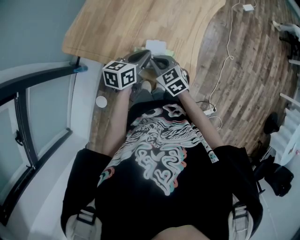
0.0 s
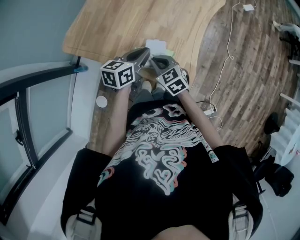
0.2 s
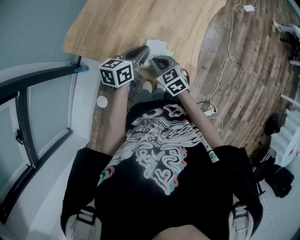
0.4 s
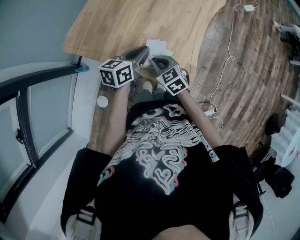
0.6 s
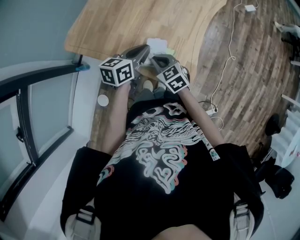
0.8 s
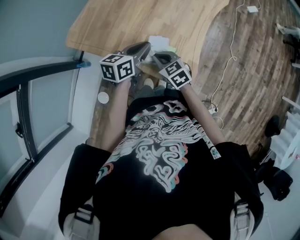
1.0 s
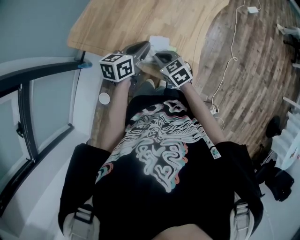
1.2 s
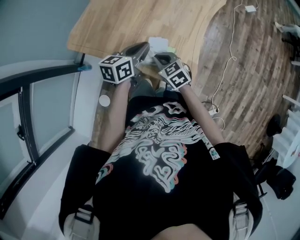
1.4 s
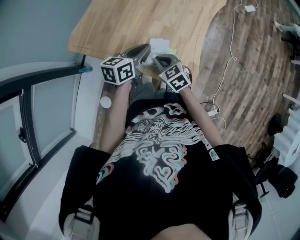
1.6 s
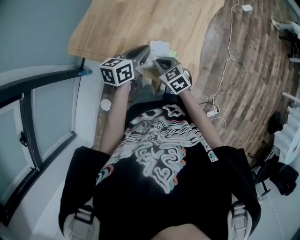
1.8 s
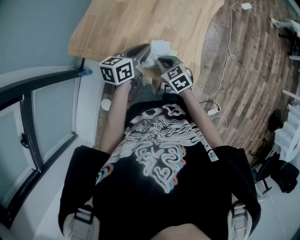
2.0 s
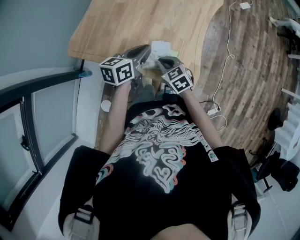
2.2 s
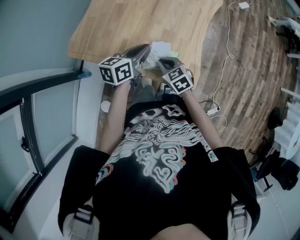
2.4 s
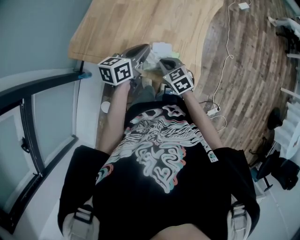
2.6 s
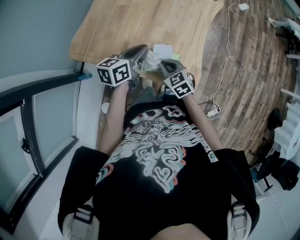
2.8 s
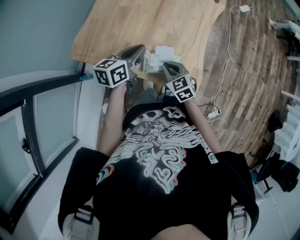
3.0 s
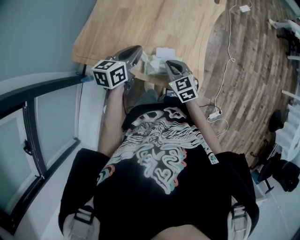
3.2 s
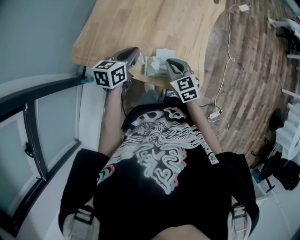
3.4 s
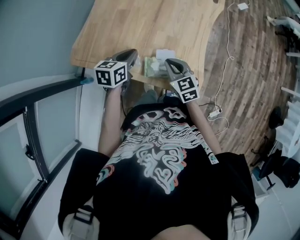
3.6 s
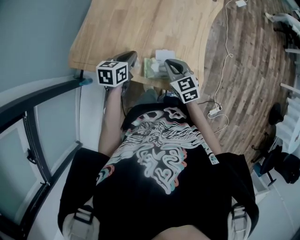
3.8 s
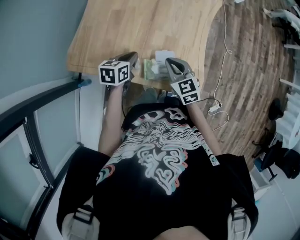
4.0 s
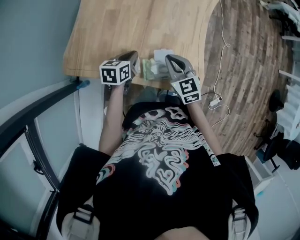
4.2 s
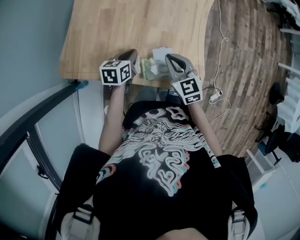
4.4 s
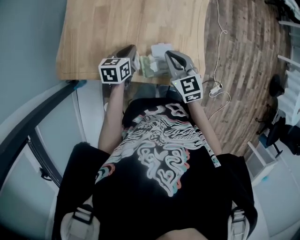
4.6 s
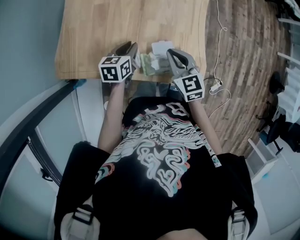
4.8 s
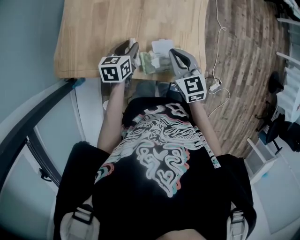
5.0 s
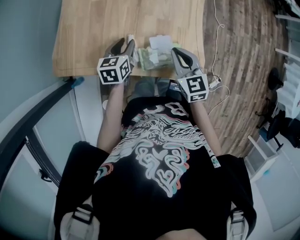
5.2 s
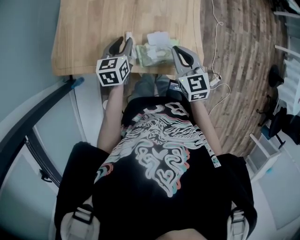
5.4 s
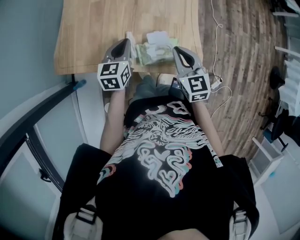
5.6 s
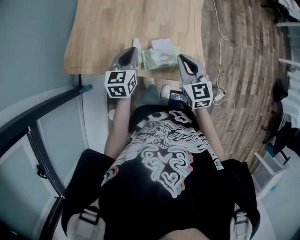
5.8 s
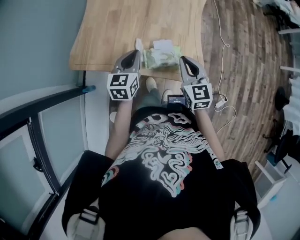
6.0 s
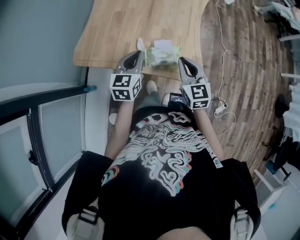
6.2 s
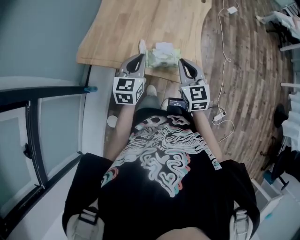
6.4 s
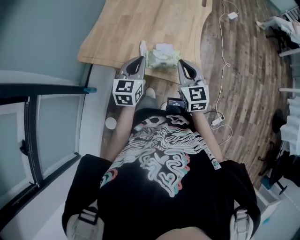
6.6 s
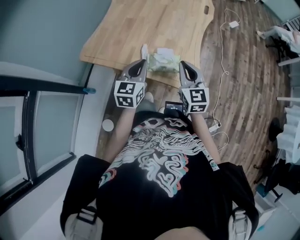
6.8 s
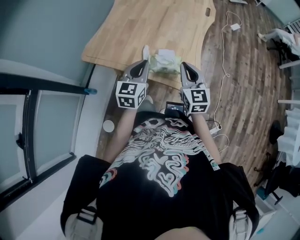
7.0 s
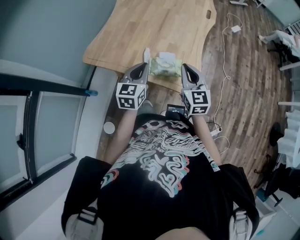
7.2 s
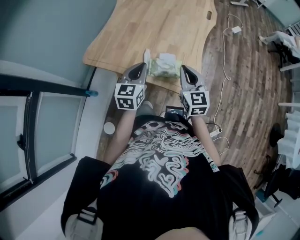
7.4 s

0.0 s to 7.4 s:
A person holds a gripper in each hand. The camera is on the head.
0.0 to 1.4 s: There are only small adjustments of the grippers.
1.4 to 3.0 s: The left gripper heads to the left, covering about 5 cm.
3.0 to 4.4 s: The right gripper shifts about 5 cm forward, while the left gripper heads downward, covering some 15 cm, and turns by roughly 20 degrees.
4.4 to 6.0 s: The left gripper moves upward and backward, about 15 cm, swivels some 30 degrees, and opens, then closes once more; the right gripper is displaced backward, upward and to the right by about 15 cm.
6.0 to 7.4 s: The left gripper moves backward and upward, about 10 cm; the right gripper shifts by roughly 5 cm.

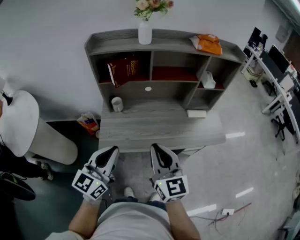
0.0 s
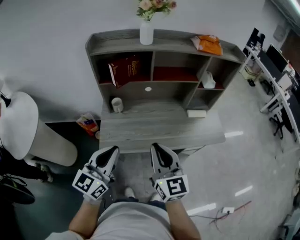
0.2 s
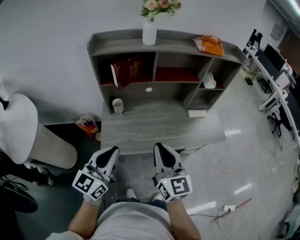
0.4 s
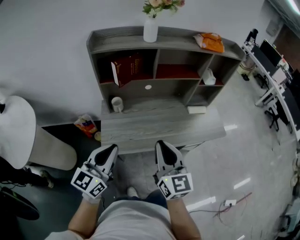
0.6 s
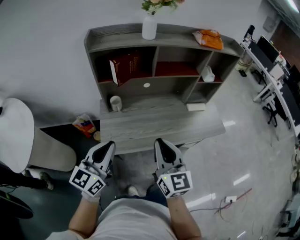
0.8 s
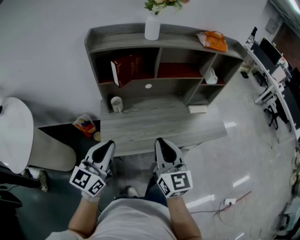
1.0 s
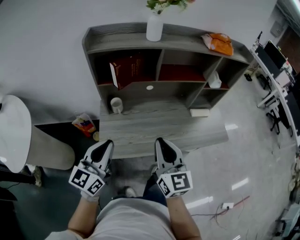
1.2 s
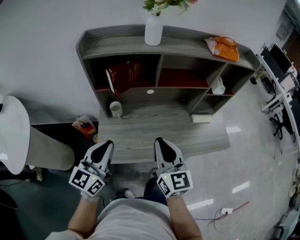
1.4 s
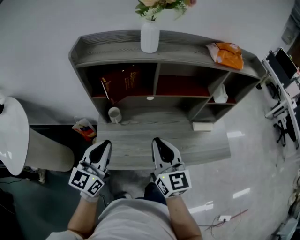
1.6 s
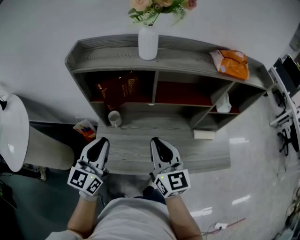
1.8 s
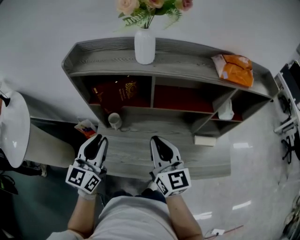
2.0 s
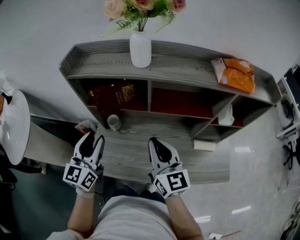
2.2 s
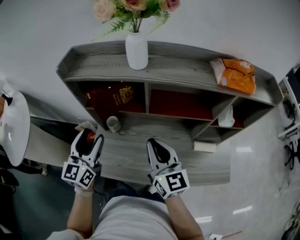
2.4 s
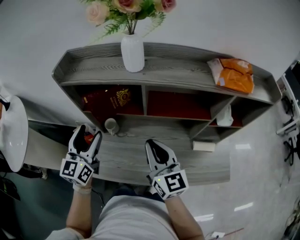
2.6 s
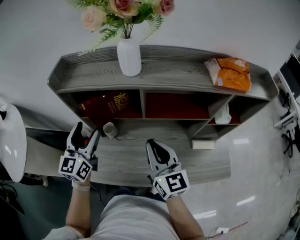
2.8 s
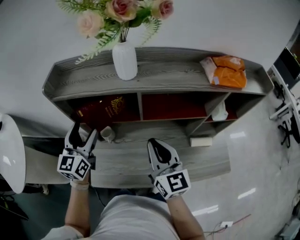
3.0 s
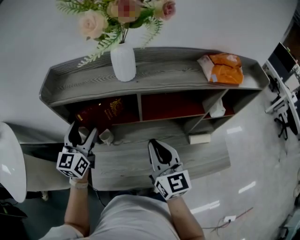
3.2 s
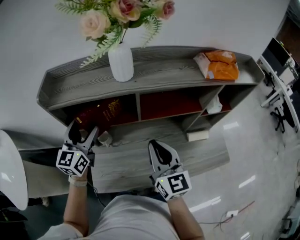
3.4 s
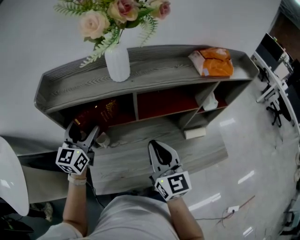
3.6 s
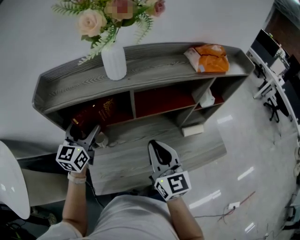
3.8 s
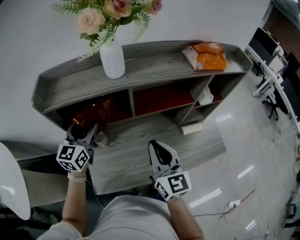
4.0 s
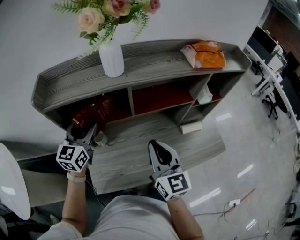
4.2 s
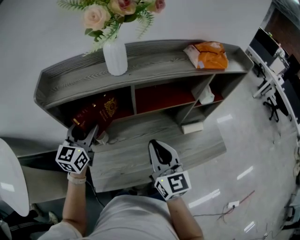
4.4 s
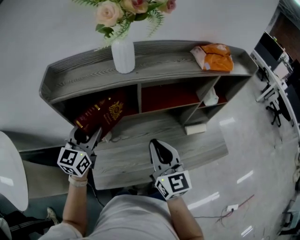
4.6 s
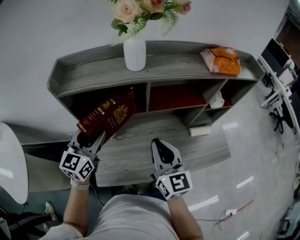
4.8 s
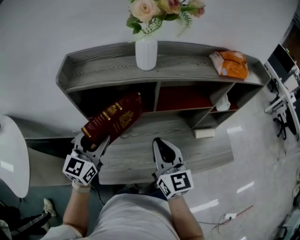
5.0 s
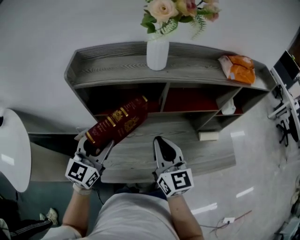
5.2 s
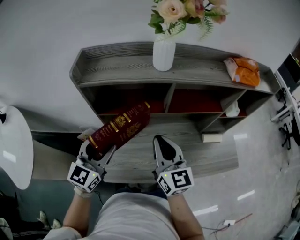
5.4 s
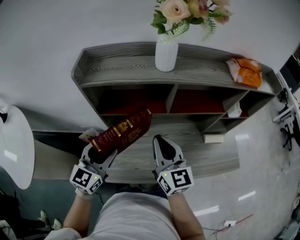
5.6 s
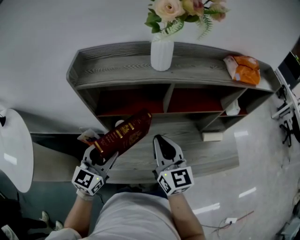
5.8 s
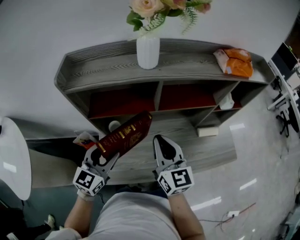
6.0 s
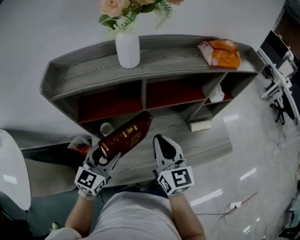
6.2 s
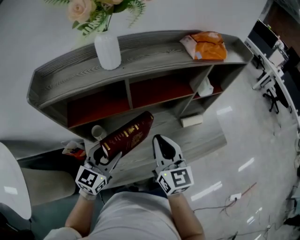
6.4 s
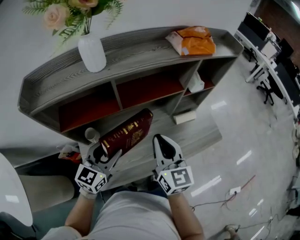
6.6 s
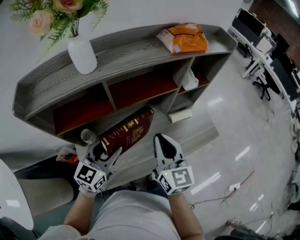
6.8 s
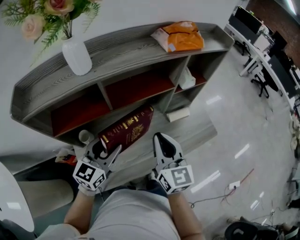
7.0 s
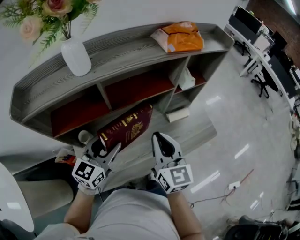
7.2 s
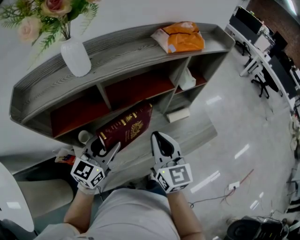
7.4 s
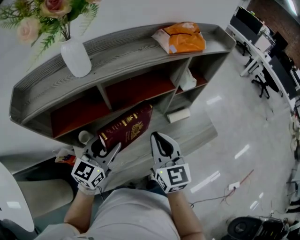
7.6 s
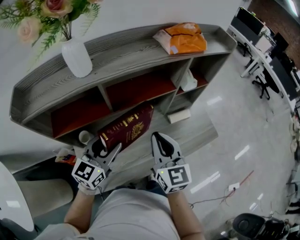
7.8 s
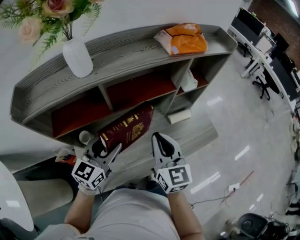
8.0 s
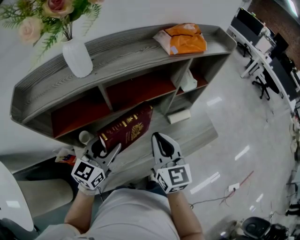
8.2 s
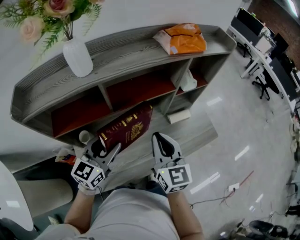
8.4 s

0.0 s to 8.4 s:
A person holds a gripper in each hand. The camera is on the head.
0.0 to 1.4 s: The right gripper shifts some 15 cm forward, while the left gripper goes approximately 15 cm forward and to the left.
1.4 to 2.8 s: The left gripper travels forward by some 20 cm, changes its angle by some 20 degrees, and opens up; the right gripper goes some 15 cm forward and to the right.
2.8 to 4.2 s: The left gripper is displaced forward by some 10 cm, and rotates about 20 degrees.
4.2 to 5.6 s: The left gripper goes approximately 15 cm backward, while the right gripper heads to the left, covering roughly 10 cm.
5.6 to 7.0 s: The right gripper shifts roughly 20 cm to the right, and swivels some 20 degrees; the left gripper travels to the right and forward by approximately 20 cm, and rotates about 30 degrees.
7.0 to 8.4 s: There are only small adjustments of the grippers.

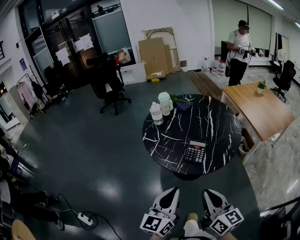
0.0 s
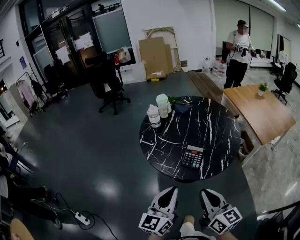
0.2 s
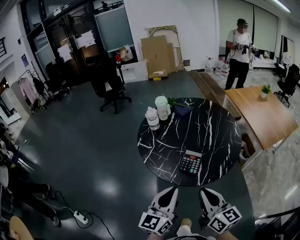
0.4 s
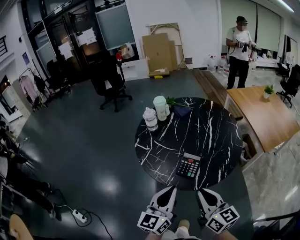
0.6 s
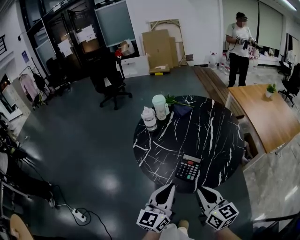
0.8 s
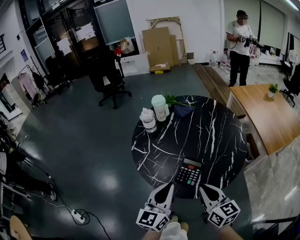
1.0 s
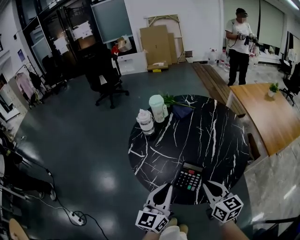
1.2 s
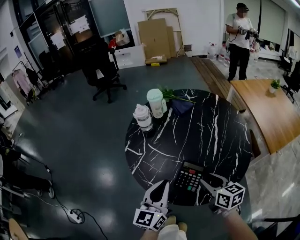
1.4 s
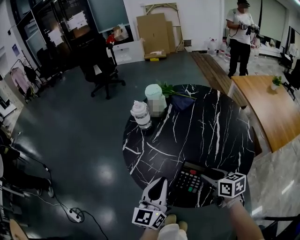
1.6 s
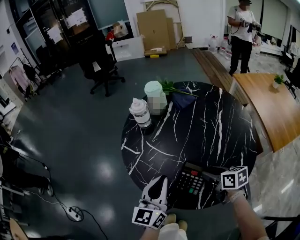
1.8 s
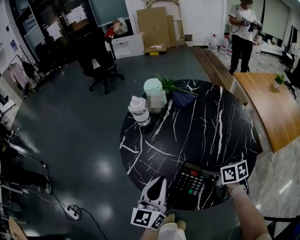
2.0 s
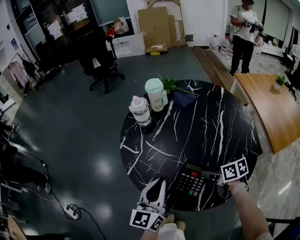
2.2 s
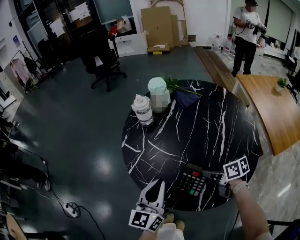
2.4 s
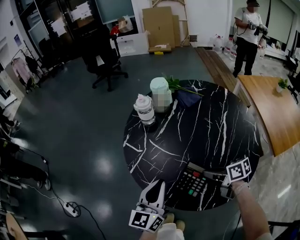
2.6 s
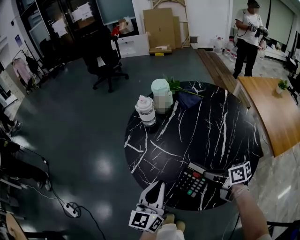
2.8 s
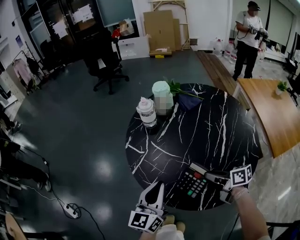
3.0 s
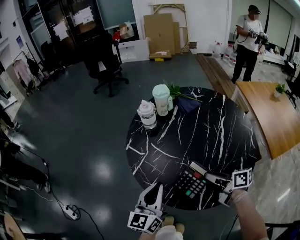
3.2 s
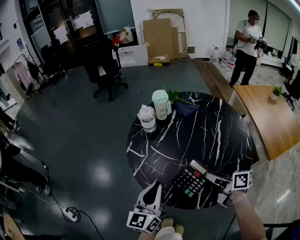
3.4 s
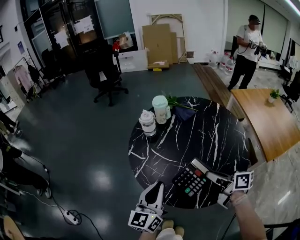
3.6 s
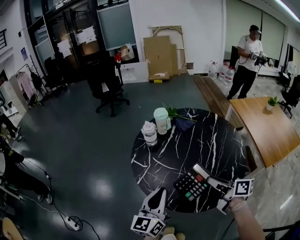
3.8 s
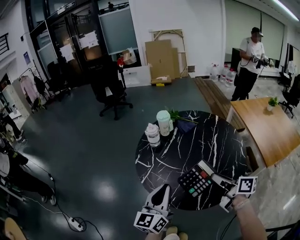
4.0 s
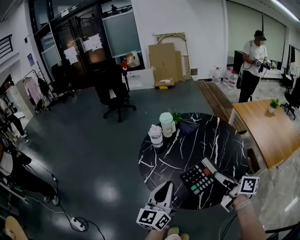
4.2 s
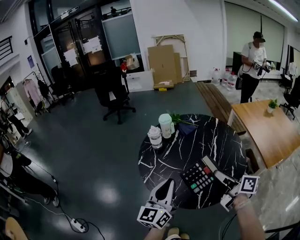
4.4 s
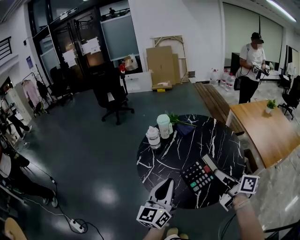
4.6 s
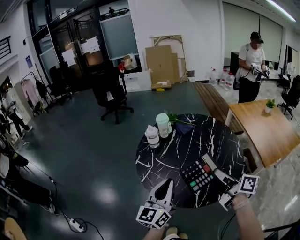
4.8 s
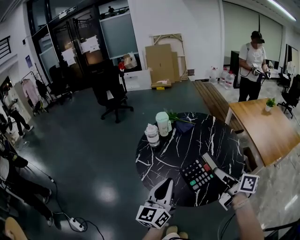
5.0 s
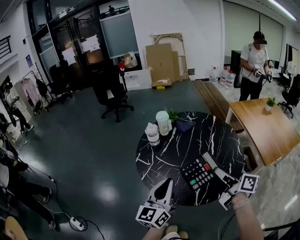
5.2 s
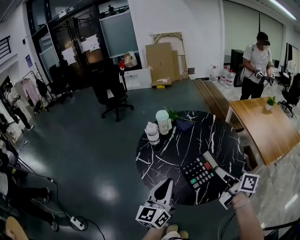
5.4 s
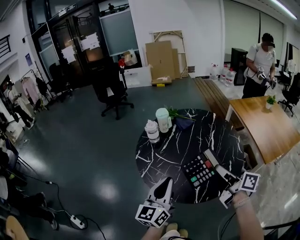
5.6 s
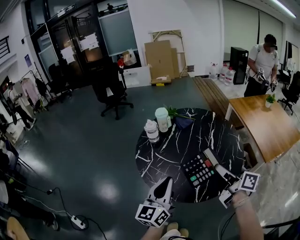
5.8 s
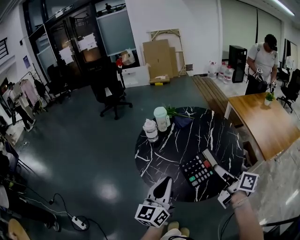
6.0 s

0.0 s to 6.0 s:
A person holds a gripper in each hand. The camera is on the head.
0.0 to 1.6 s: The two grippers go approximately 35 cm forward and downward. The right gripper points its fingers approximately 30 degrees further downward, and opens its fingers.
1.6 to 3.0 s: The right gripper swivels roughly 30 degrees, and closes.
3.0 to 4.4 s: The grippers both shift upward by approximately 20 cm. The right gripper changes its angle by some 30 degrees.
4.4 to 6.0 s: The grippers stay close to where they were, moving slightly.

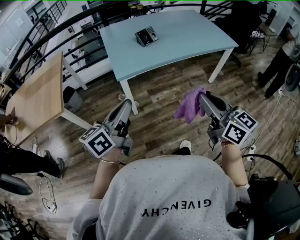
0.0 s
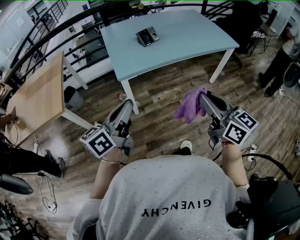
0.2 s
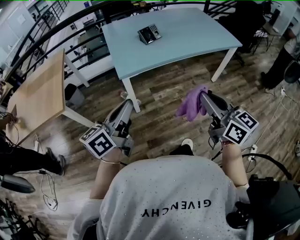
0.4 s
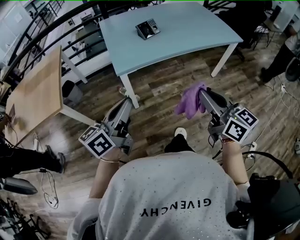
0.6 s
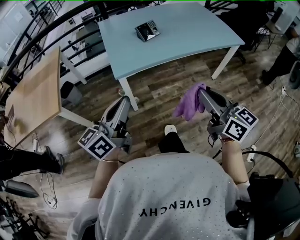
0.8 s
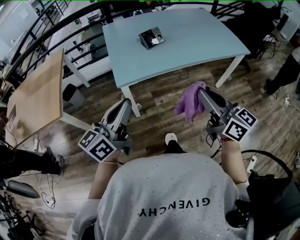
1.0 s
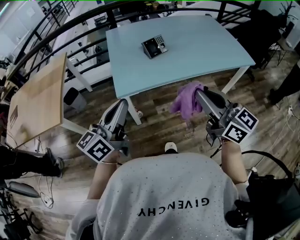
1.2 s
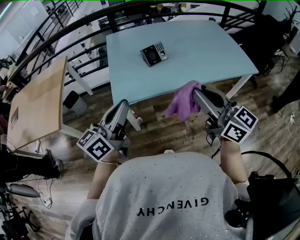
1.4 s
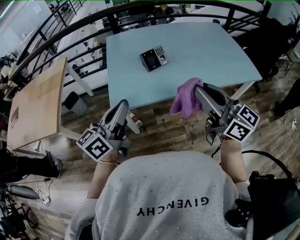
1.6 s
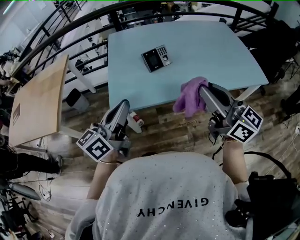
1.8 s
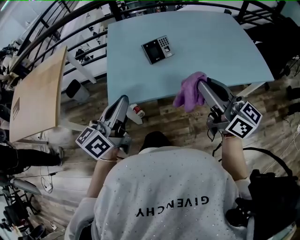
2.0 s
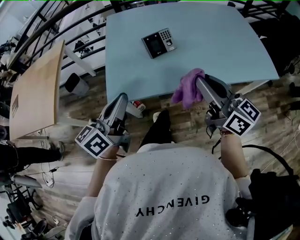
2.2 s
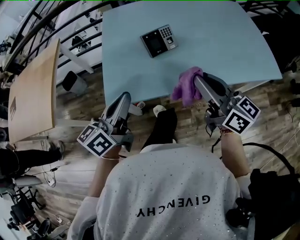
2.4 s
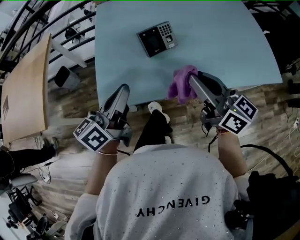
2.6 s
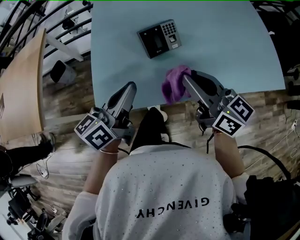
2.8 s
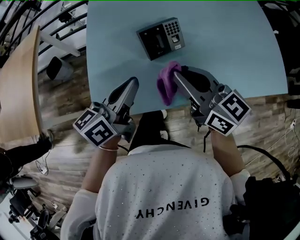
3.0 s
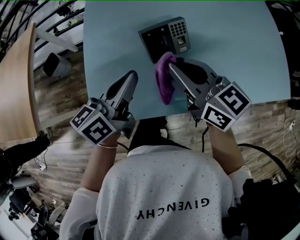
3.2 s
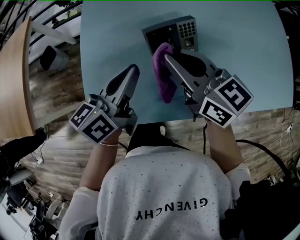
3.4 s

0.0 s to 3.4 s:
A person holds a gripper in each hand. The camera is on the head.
0.0 to 1.6 s: Both grippers travel together forward, roughly 25 cm. The right gripper turns by some 20 degrees.
1.6 to 3.4 s: The grippers both shift forward and downward by some 40 cm. The left gripper rotates some 20 degrees. Meanwhile the right gripper swivels some 20 degrees.
